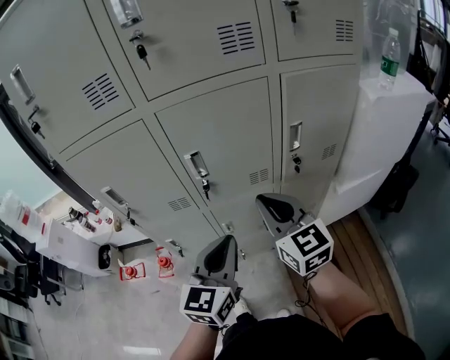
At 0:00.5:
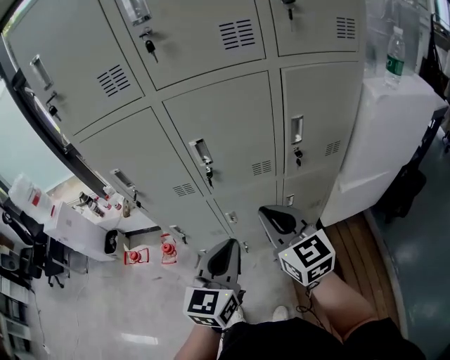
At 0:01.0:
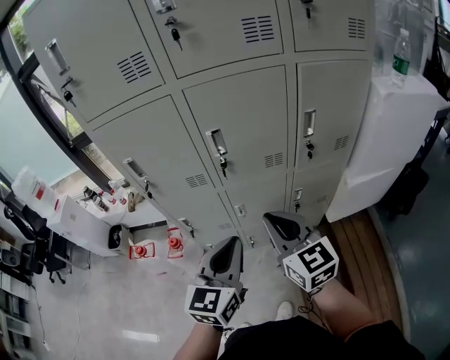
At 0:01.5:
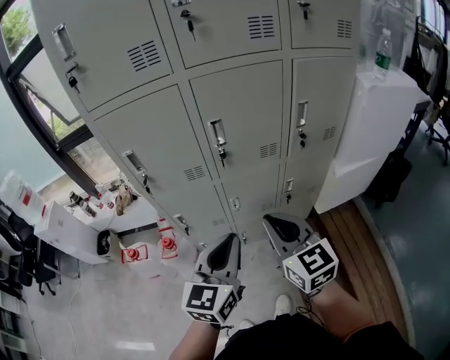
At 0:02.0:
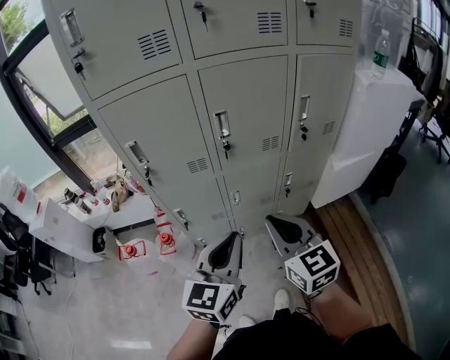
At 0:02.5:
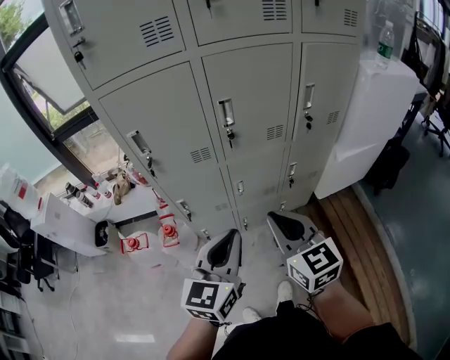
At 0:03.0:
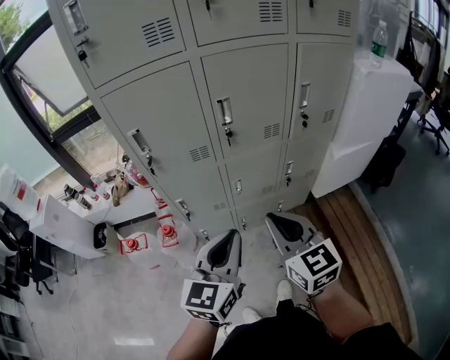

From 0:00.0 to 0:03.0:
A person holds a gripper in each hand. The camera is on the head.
From 0:00.0 to 0:01.5: Both grippers travel together backward and to the left, some 15 cm.
From 0:01.5 to 0:03.0: The left gripper moves about 5 cm. The right gripper heads backward, covering about 5 cm.

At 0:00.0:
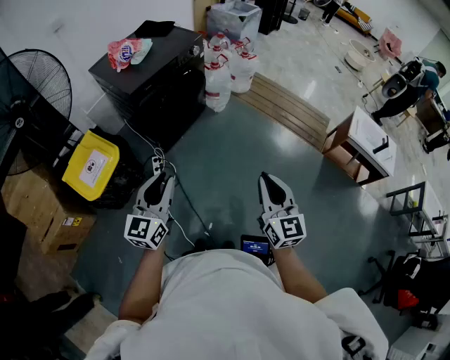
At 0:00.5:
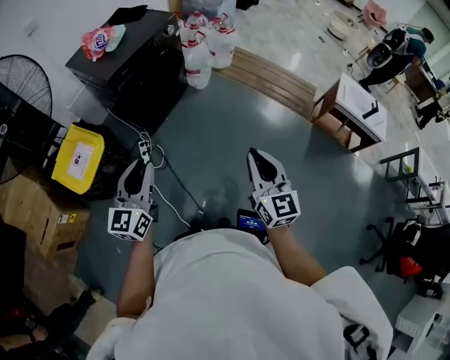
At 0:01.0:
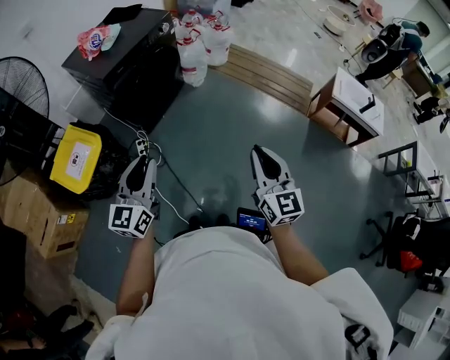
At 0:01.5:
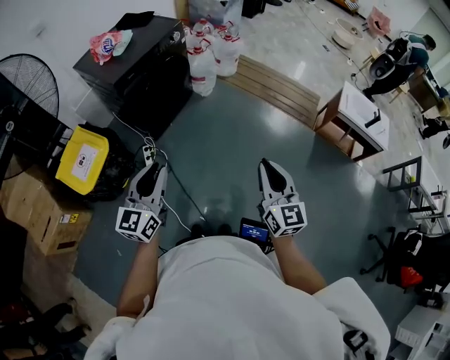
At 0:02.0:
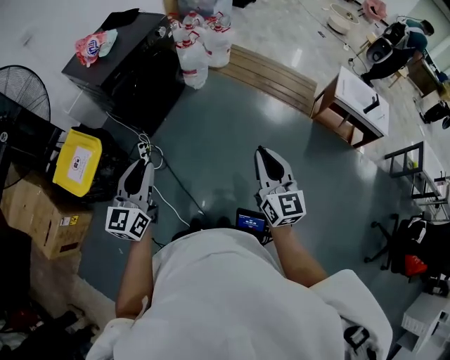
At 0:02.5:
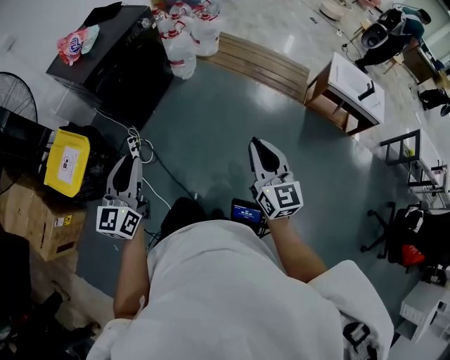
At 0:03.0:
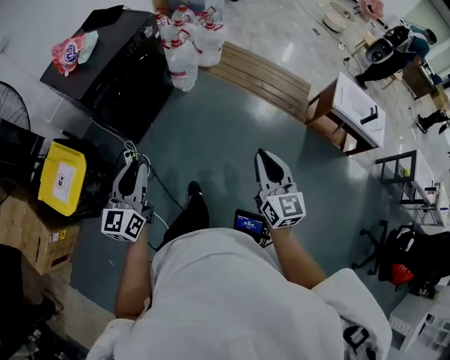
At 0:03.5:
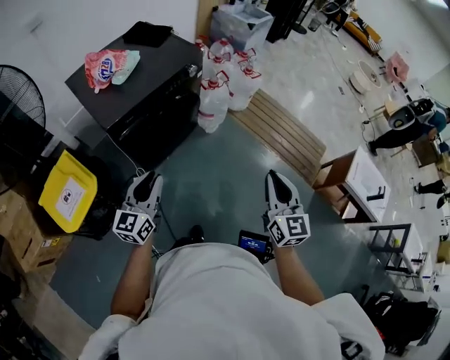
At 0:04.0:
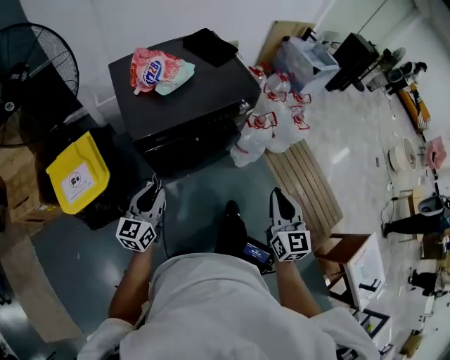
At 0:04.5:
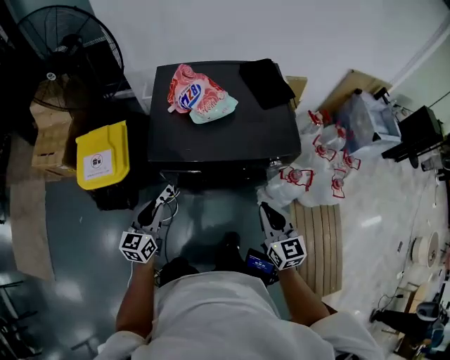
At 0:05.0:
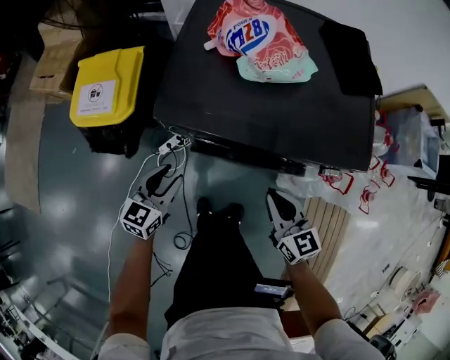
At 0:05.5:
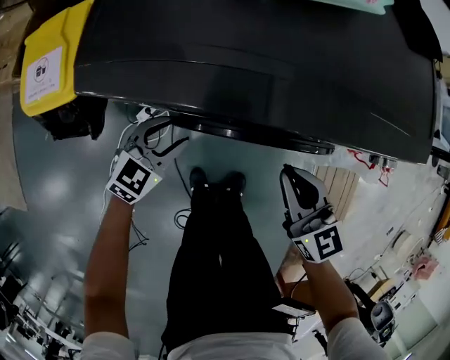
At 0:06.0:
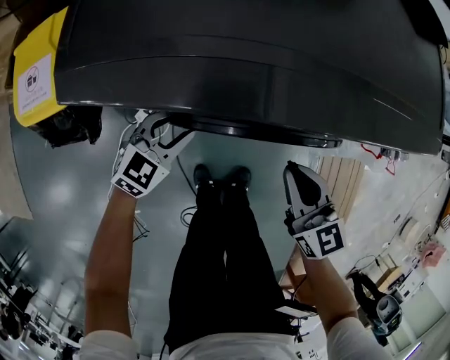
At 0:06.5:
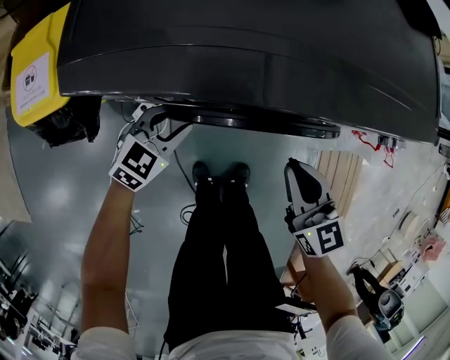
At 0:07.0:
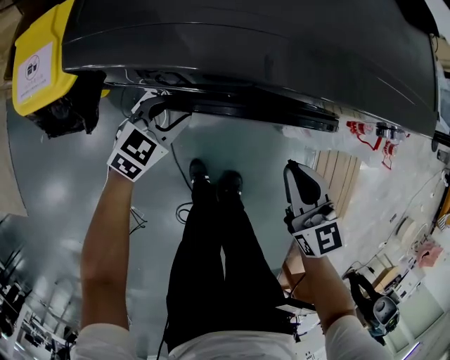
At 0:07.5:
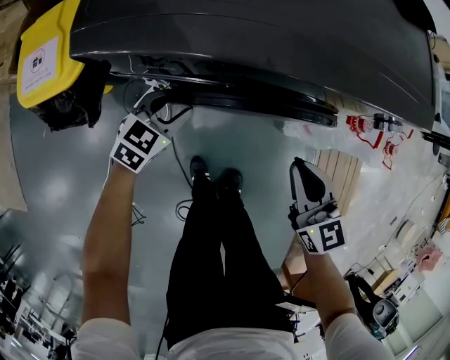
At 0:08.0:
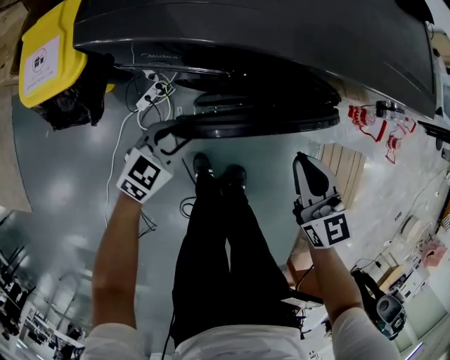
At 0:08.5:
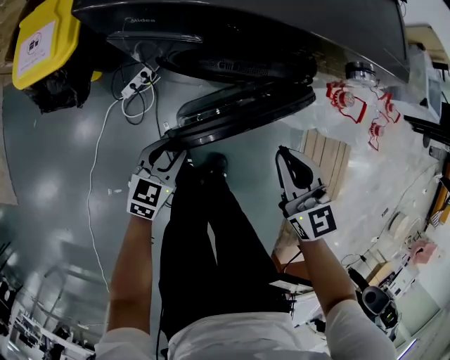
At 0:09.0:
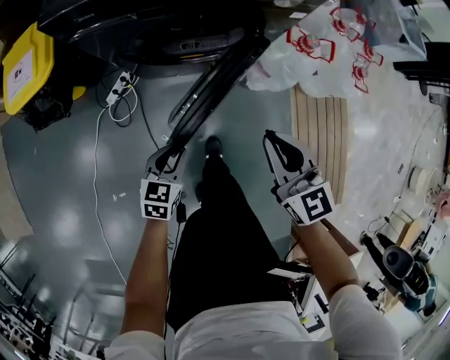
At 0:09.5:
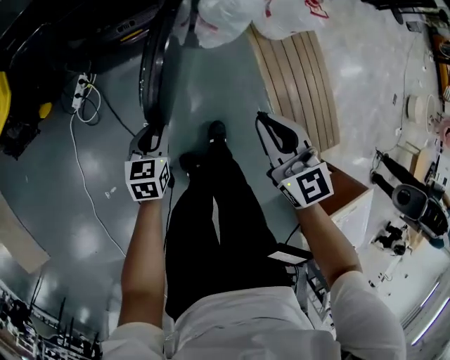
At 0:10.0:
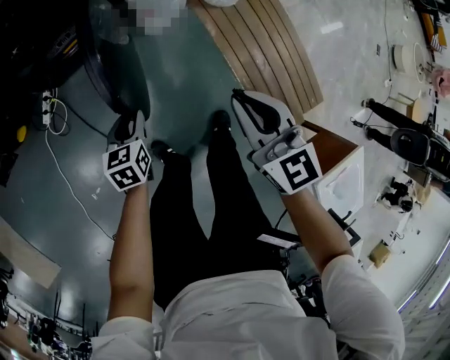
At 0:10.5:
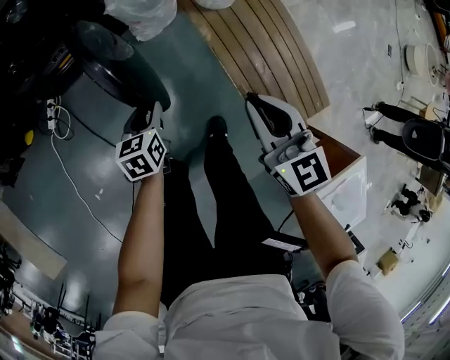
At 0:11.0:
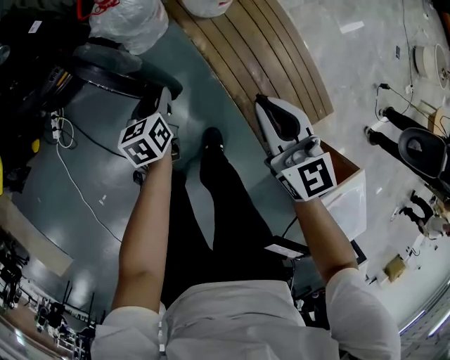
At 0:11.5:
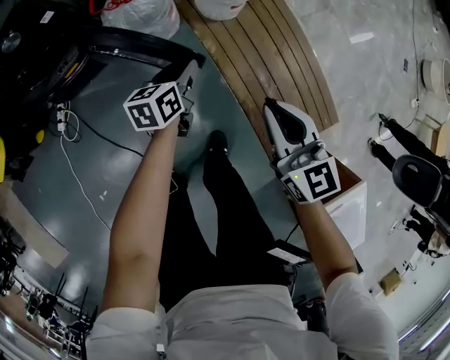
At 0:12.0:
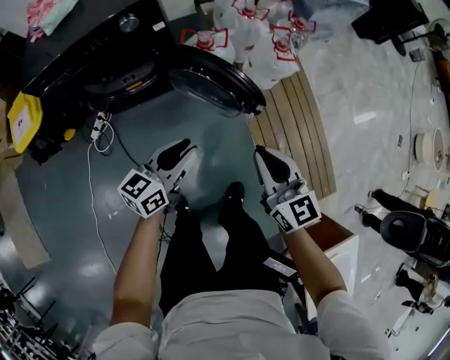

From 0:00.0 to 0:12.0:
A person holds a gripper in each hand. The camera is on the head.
From 0:00.0 to 0:02.0: The right gripper goes about 10 cm to the right. Meanwhile the left gripper travels to the right by about 5 cm.
From 0:02.0 to 0:04.0: The two grippers travel together, roughly 50 cm. The left gripper changes its angle by roughly 30 degrees. Meanwhile the right gripper changes its angle by approximately 30 degrees.
From 0:04.0 to 0:06.0: Both grippers travel together downward, some 35 cm. The left gripper rotates approximately 30 degrees, and opens its fingers. Meanwhile the right gripper changes its angle by some 50 degrees.
From 0:06.0 to 0:08.0: The right gripper ends up some 5 cm from where it was. The left gripper heads backward, covering roughly 10 cm.
From 0:08.0 to 0:10.0: Both grippers are carried to the right and backward, about 50 cm. The left gripper swivels some 20 degrees; the right gripper rotates about 20 degrees.
From 0:10.0 to 0:12.0: The right gripper heads upward, covering some 10 cm, and moves approximately 25 cm to the right and comes back. Meanwhile the left gripper moves upward and to the right, approximately 25 cm, and points its fingers some 30 degrees further upward.

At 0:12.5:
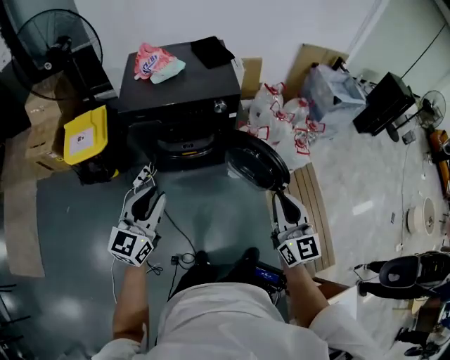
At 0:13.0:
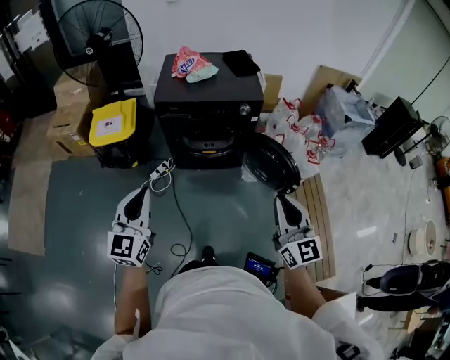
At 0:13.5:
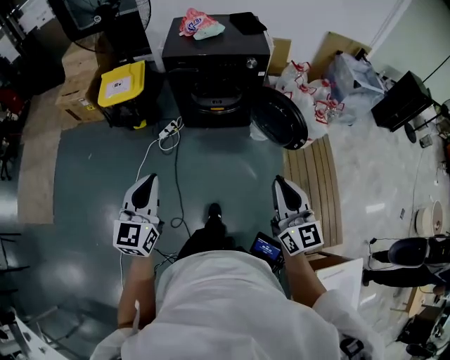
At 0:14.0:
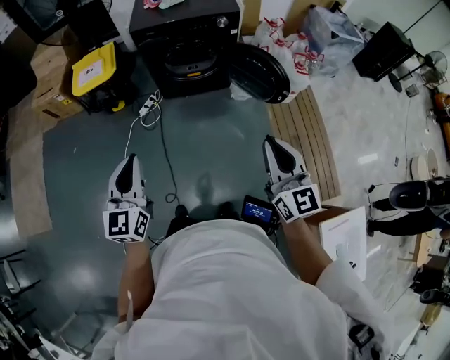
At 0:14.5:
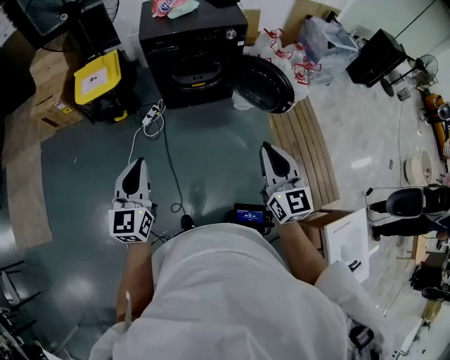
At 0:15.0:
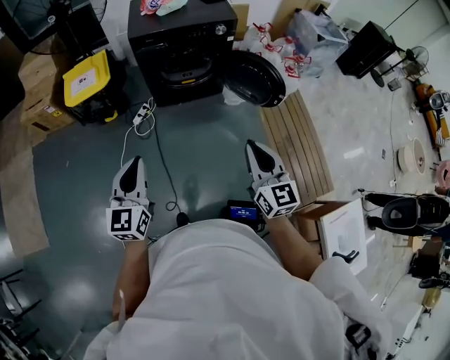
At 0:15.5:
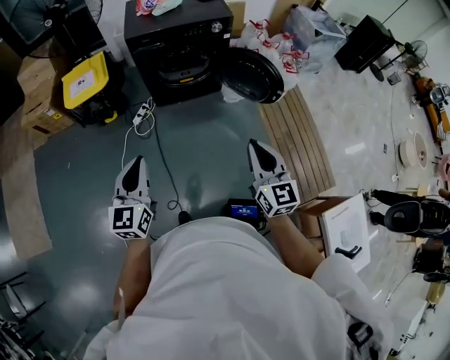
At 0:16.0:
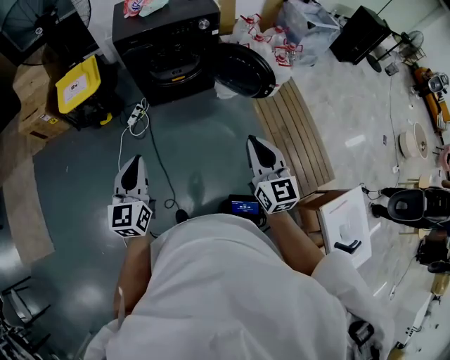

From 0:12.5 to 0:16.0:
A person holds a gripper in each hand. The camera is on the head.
From 0:12.5 to 0:14.5: The two grippers go some 30 cm backward and to the left. The left gripper closes.
From 0:14.5 to 0:16.0: The left gripper travels to the right by roughly 5 cm. Meanwhile the right gripper shifts by some 5 cm.

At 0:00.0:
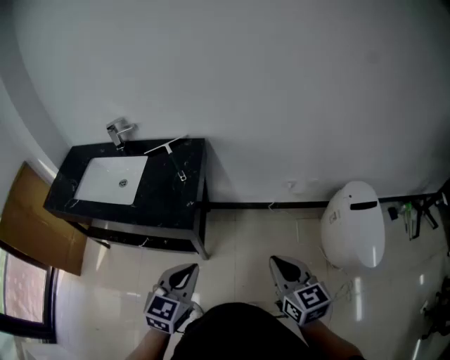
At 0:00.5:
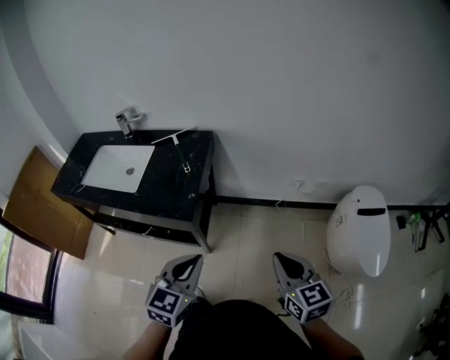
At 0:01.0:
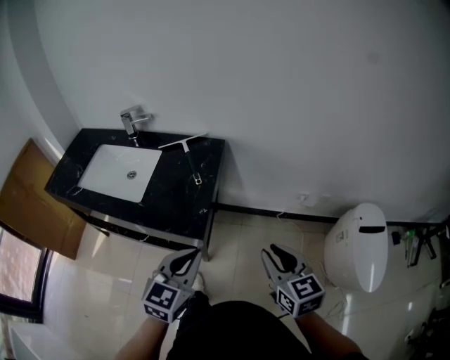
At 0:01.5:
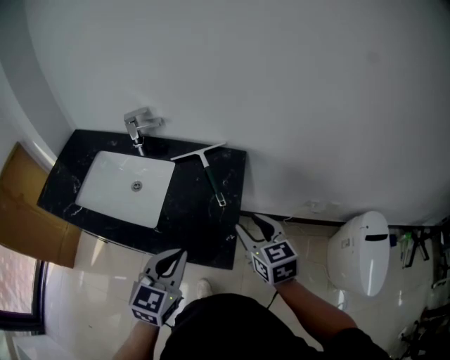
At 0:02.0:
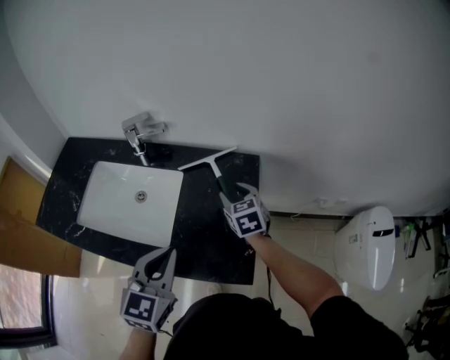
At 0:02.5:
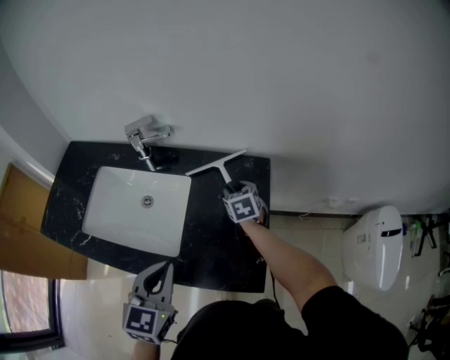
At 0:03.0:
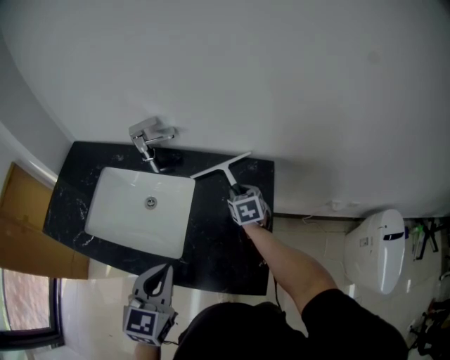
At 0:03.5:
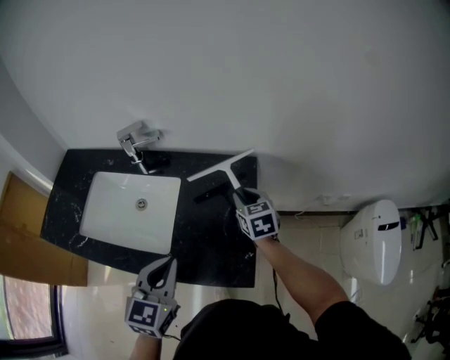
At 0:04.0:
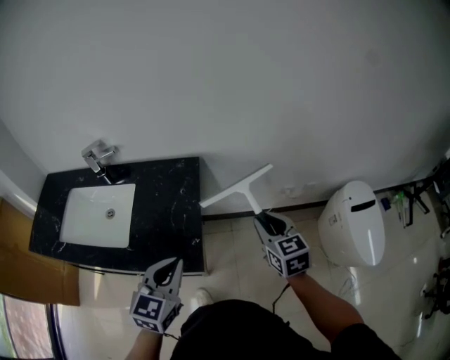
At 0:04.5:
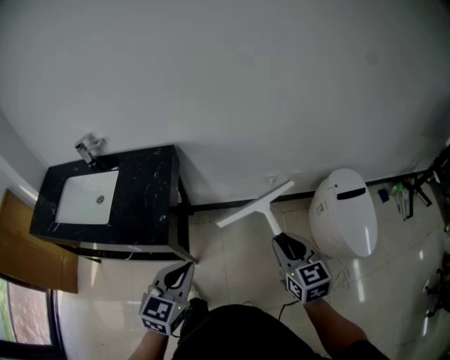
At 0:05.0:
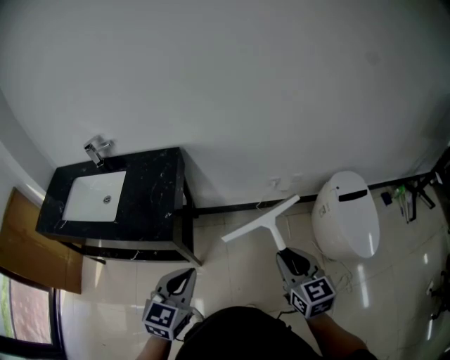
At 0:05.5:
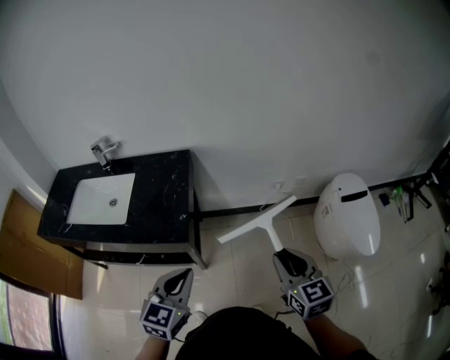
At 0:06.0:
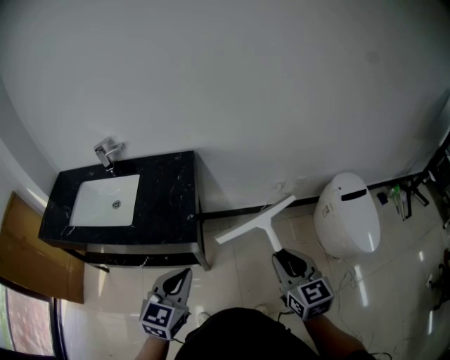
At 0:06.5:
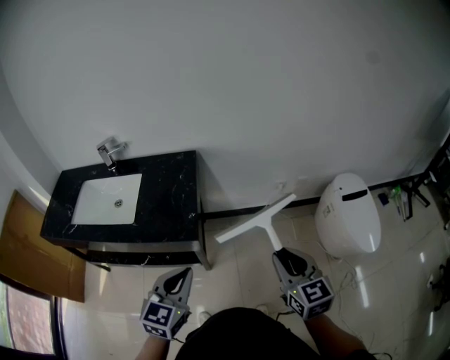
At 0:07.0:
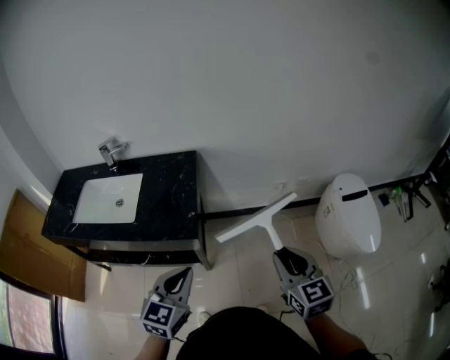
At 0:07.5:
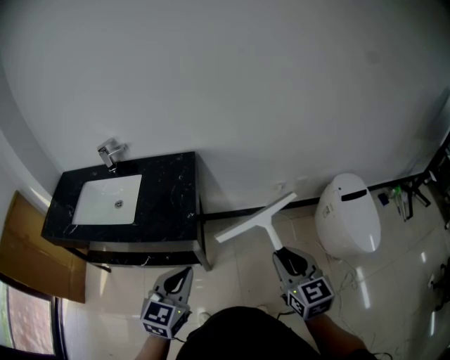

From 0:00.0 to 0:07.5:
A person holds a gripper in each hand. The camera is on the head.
From 0:00.0 to 0:02.0: The right gripper moves forward and to the left, approximately 50 cm, changes its angle by roughly 20 degrees, and opens its fingers; the left gripper moves forward and to the left, about 35 cm.
From 0:02.0 to 0:04.0: The right gripper is displaced to the right and backward by about 35 cm, and closes its fingers. Meanwhile the left gripper travels to the right by approximately 20 cm.
From 0:04.0 to 0:05.5: The grippers both shift backward and to the right by roughly 20 cm.
From 0:05.5 to 0:07.5: The grippers make only small movements.
